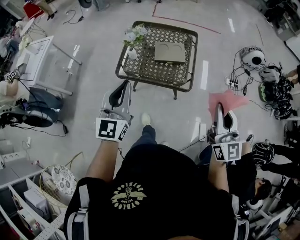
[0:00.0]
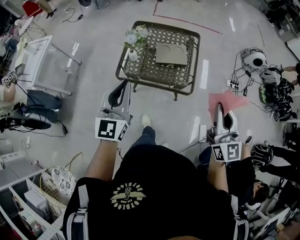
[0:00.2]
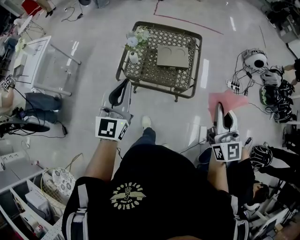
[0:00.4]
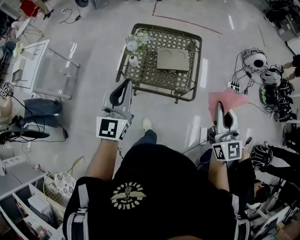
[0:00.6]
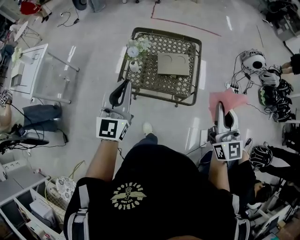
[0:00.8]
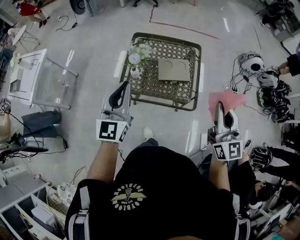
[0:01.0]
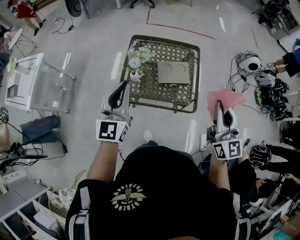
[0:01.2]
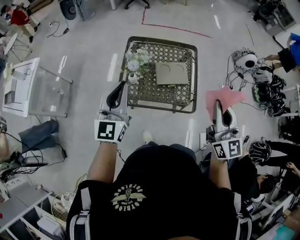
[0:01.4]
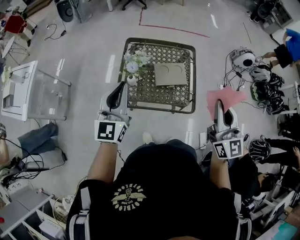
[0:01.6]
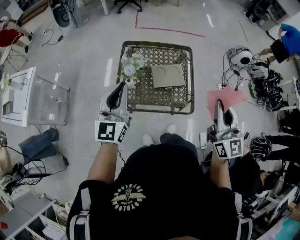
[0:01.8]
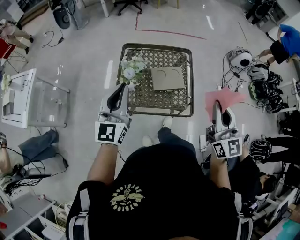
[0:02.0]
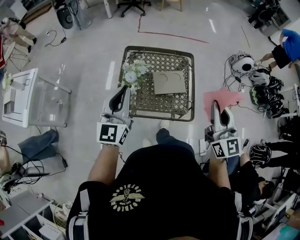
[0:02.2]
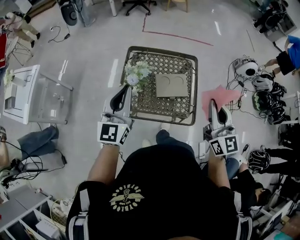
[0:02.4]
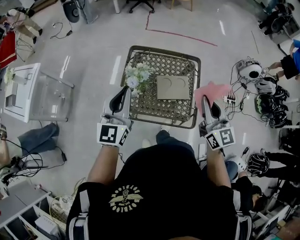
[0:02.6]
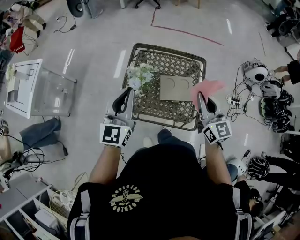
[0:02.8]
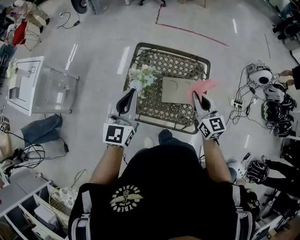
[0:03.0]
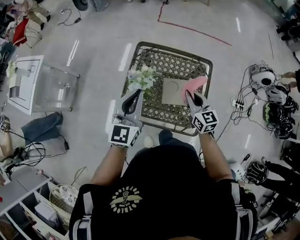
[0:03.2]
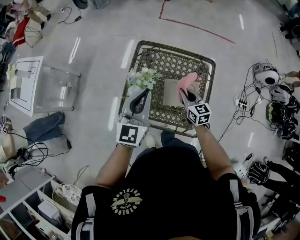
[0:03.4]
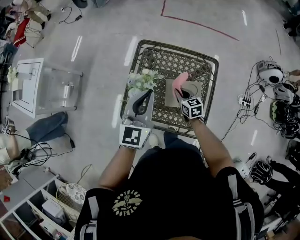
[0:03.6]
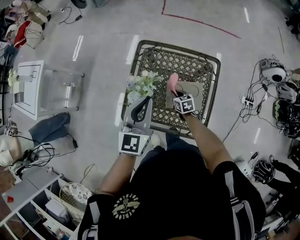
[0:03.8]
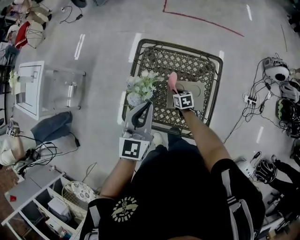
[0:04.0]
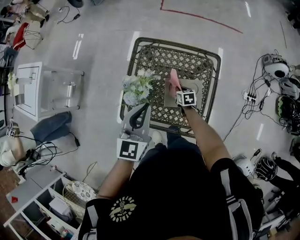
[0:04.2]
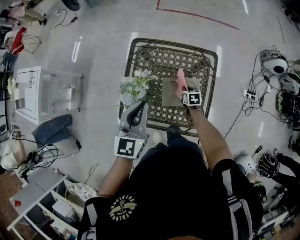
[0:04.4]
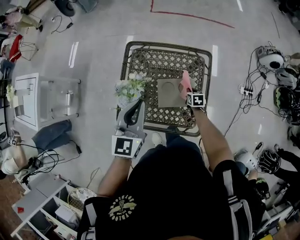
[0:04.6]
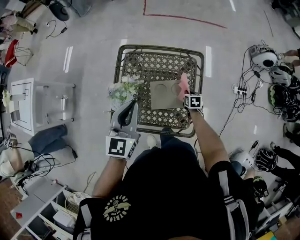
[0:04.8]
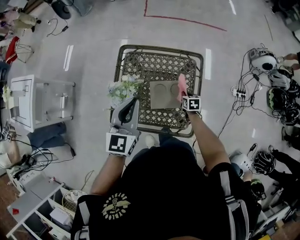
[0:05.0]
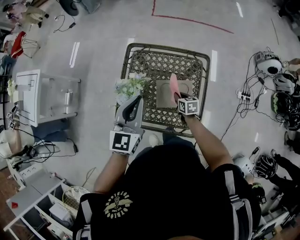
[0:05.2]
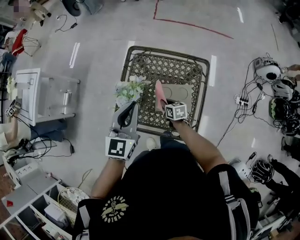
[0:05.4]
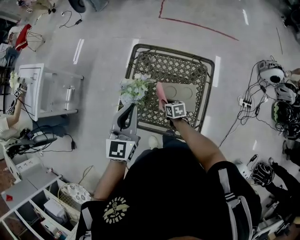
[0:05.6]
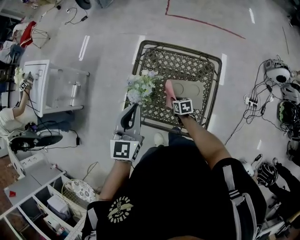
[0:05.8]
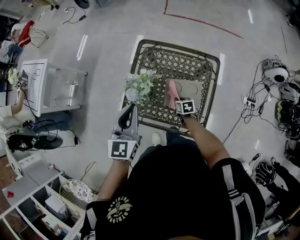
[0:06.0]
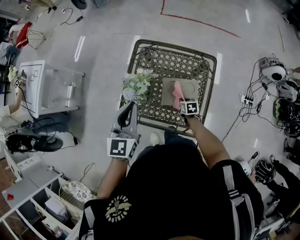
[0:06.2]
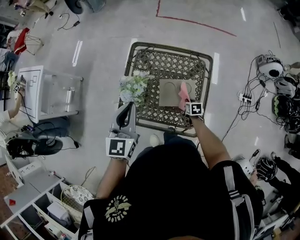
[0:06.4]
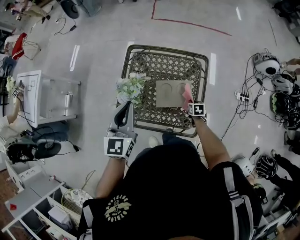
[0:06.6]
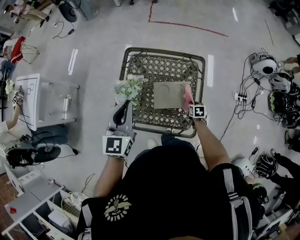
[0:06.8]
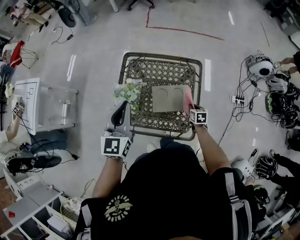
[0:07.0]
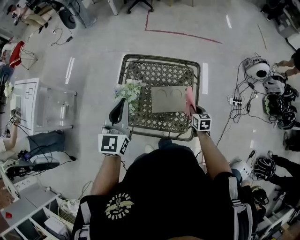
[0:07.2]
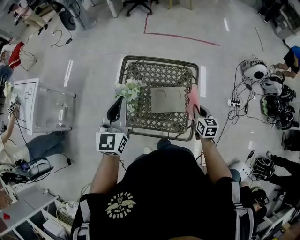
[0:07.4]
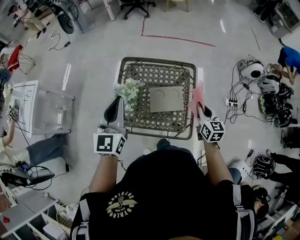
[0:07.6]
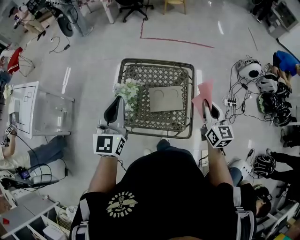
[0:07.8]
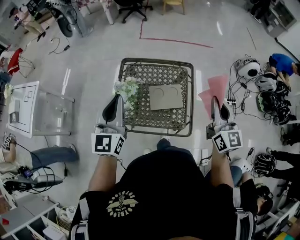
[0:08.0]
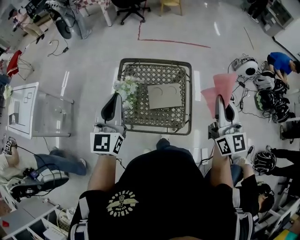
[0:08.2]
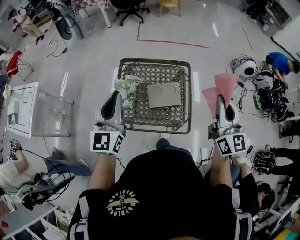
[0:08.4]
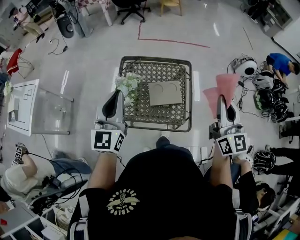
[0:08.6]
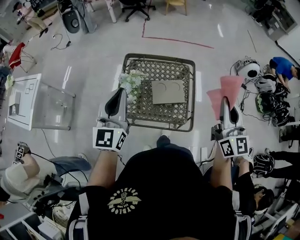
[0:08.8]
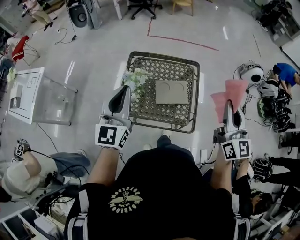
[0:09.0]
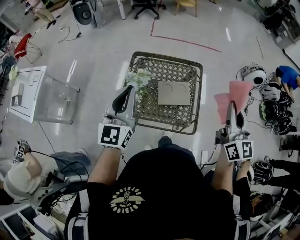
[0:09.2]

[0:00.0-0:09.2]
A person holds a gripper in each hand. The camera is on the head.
0:00.0 to 0:01.6: The grippers both shift forward and to the left by some 25 cm.
0:01.6 to 0:03.0: The left gripper shifts some 15 cm forward and downward; the right gripper is displaced forward and downward by roughly 30 cm, and rotates about 20 degrees.
0:03.0 to 0:04.6: The right gripper goes about 35 cm downward, and points its fingers approximately 50 degrees further downward, while the left gripper travels to the right, downward and forward by some 15 cm.
0:04.6 to 0:06.2: The grippers both shift to the left by approximately 5 cm.
0:06.2 to 0:07.6: The left gripper moves upward, about 10 cm, while the right gripper is displaced upward by approximately 30 cm, and points its fingers roughly 40 degrees further upward.
0:07.6 to 0:09.2: The right gripper moves upward and backward, about 25 cm, and swivels some 30 degrees. The left gripper heads backward, covering about 5 cm.

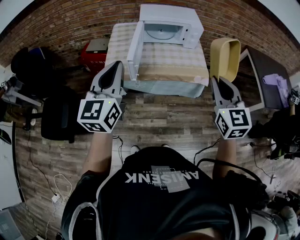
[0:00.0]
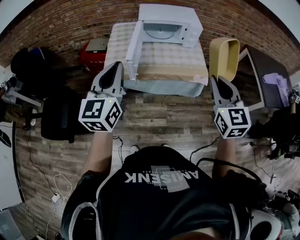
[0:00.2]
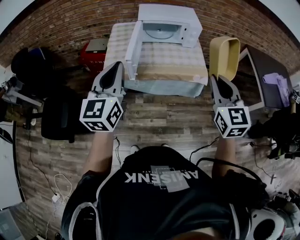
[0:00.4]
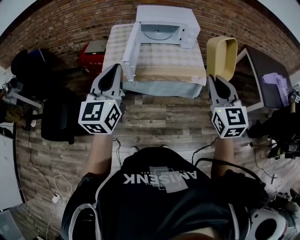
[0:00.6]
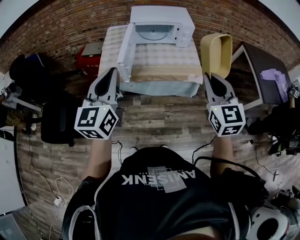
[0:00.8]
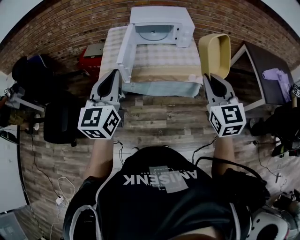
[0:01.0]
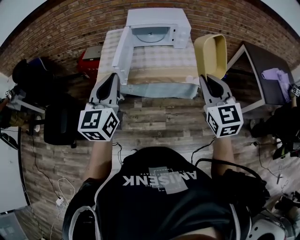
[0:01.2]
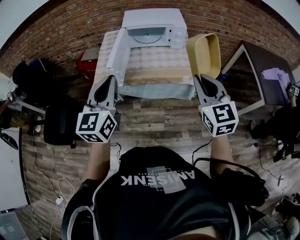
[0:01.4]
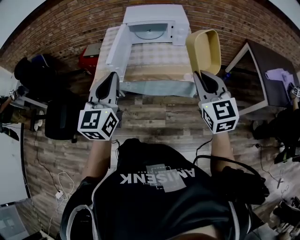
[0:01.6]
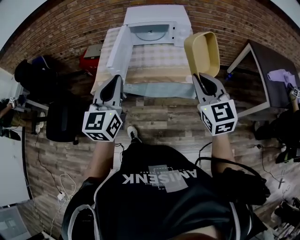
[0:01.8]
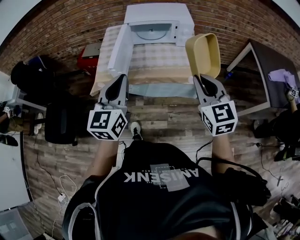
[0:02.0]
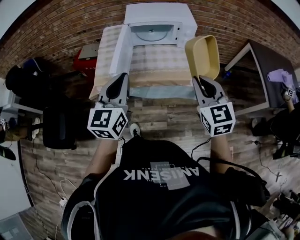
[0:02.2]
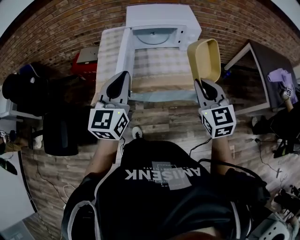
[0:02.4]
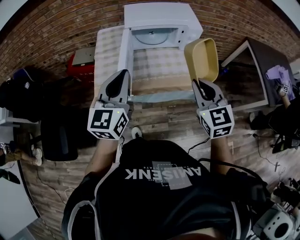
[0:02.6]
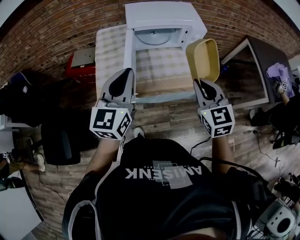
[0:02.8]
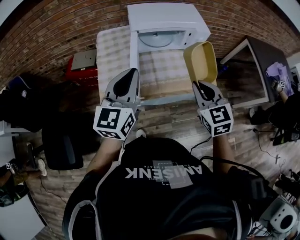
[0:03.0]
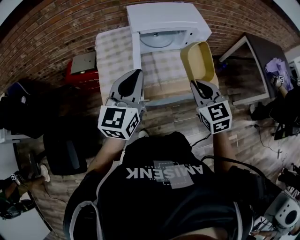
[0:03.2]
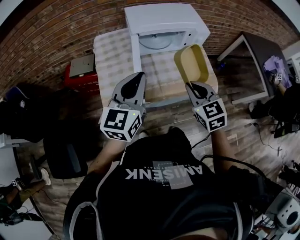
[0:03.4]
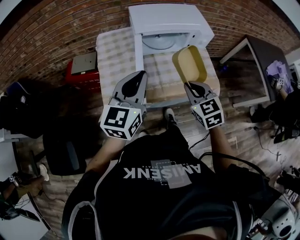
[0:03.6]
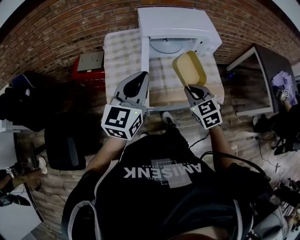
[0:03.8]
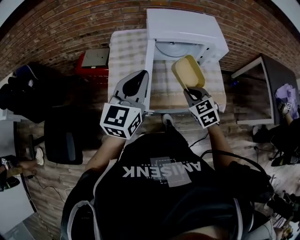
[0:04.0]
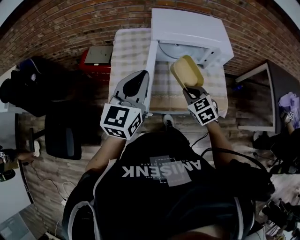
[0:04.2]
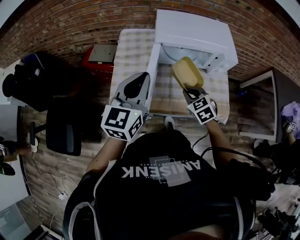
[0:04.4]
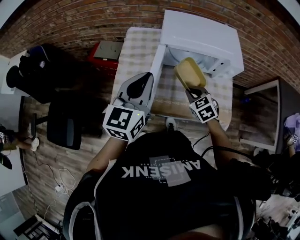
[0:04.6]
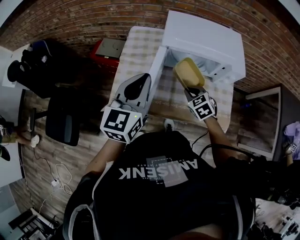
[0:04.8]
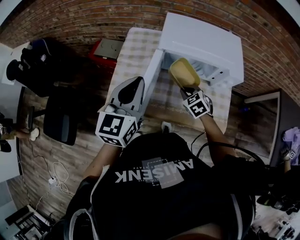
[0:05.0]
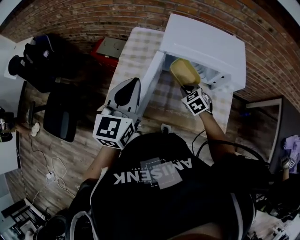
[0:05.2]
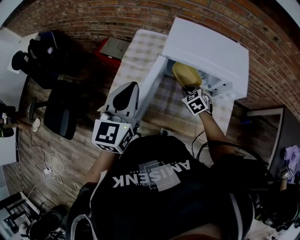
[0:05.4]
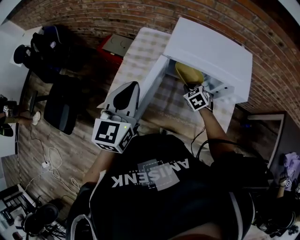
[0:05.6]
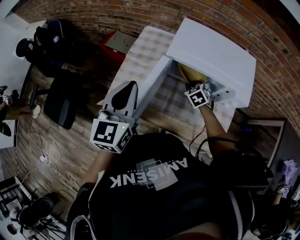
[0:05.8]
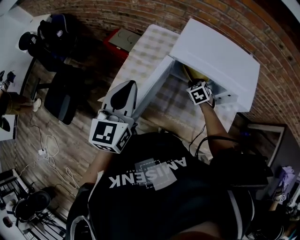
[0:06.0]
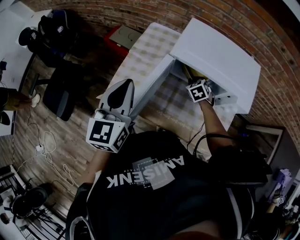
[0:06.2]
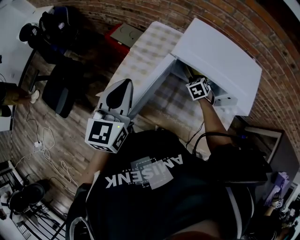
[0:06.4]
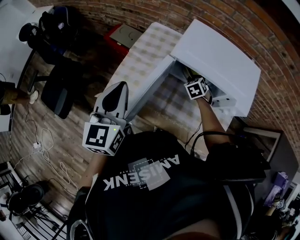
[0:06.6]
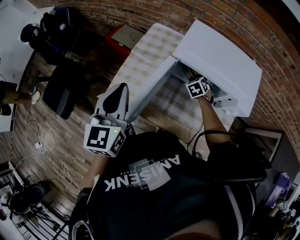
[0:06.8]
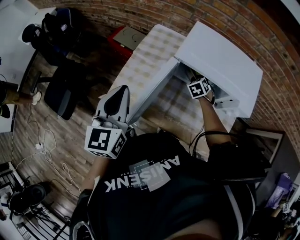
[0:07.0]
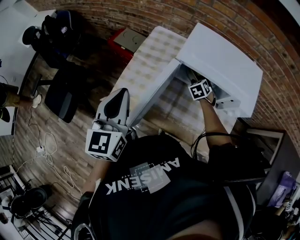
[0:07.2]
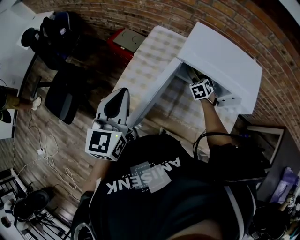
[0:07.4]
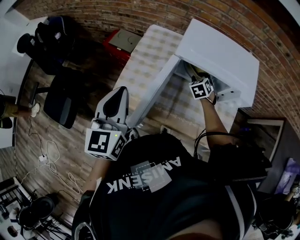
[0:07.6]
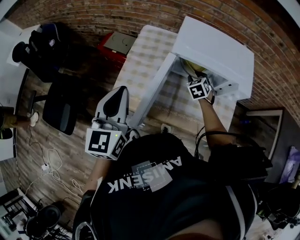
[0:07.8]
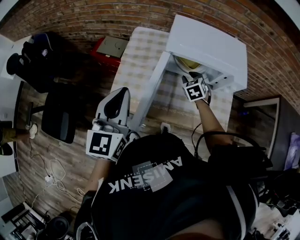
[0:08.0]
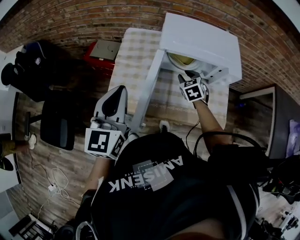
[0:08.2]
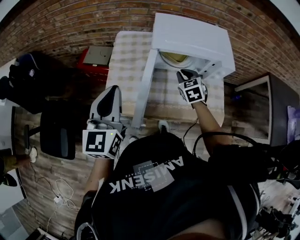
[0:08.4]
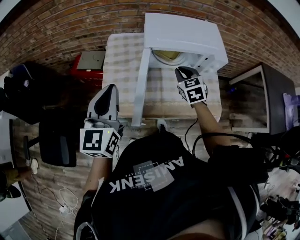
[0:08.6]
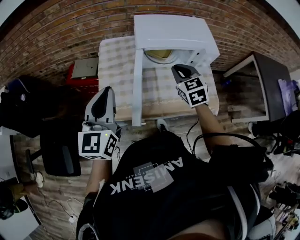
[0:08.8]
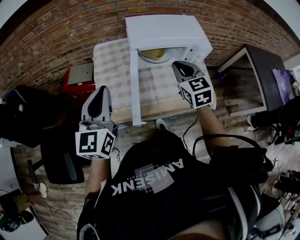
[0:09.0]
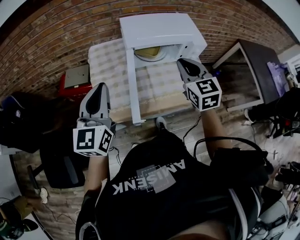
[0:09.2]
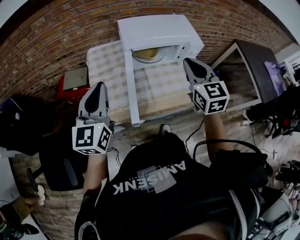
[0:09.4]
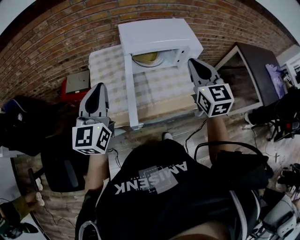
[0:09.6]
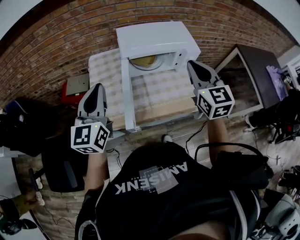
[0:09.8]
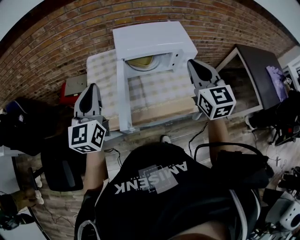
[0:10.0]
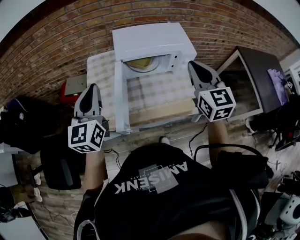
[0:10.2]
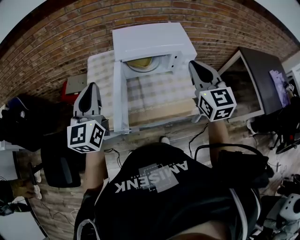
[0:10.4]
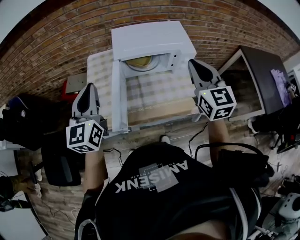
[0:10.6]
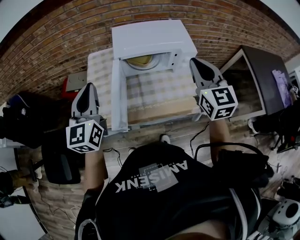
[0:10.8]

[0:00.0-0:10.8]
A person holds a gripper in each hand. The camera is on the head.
0:00.0 to 0:01.6: Both grippers move to the right, approximately 10 cm.
0:01.6 to 0:03.0: The left gripper shifts about 30 cm forward and to the left. The right gripper goes some 30 cm forward, to the left and downward.
0:03.0 to 0:04.6: The right gripper travels forward and downward by roughly 25 cm, and rotates approximately 30 degrees. The left gripper goes about 10 cm forward.
0:04.6 to 0:06.2: The left gripper rotates roughly 30 degrees, while the right gripper is displaced forward and downward by roughly 20 cm.
0:06.2 to 0:07.8: The right gripper opens. Meanwhile the left gripper shifts about 5 cm to the left.
0:07.8 to 0:09.2: The left gripper rotates about 30 degrees, while the right gripper is displaced upward and backward by about 30 cm, tips its fingers upward by roughly 30 degrees, and closes up.
0:09.2 to 0:10.8: The right gripper goes approximately 15 cm to the right and upward. Meanwhile the left gripper shifts about 5 cm to the right.

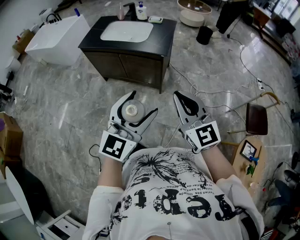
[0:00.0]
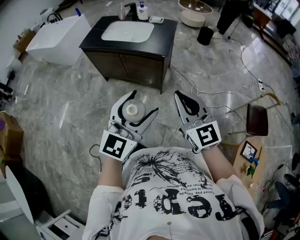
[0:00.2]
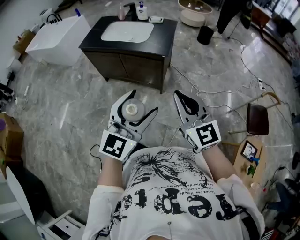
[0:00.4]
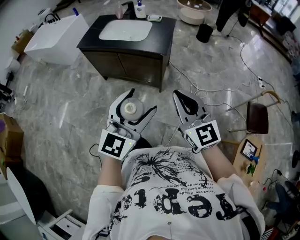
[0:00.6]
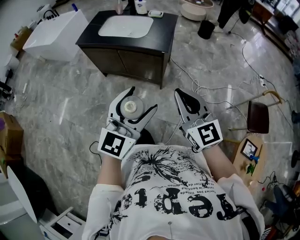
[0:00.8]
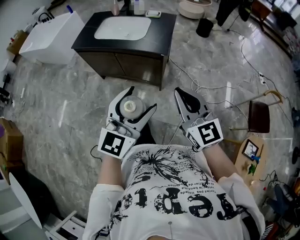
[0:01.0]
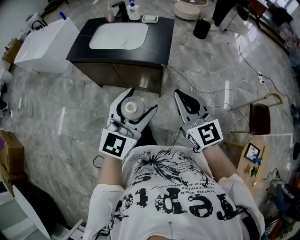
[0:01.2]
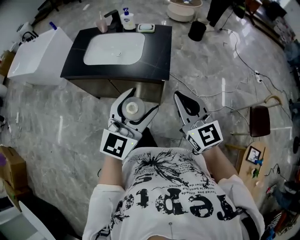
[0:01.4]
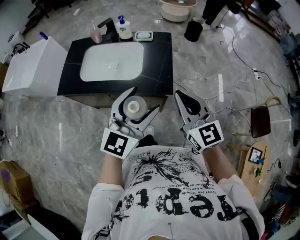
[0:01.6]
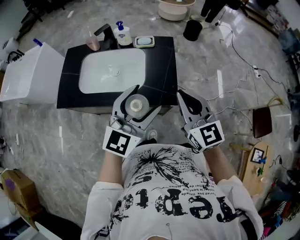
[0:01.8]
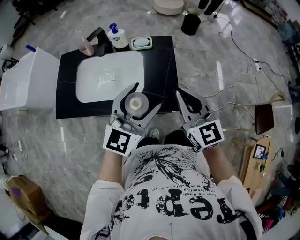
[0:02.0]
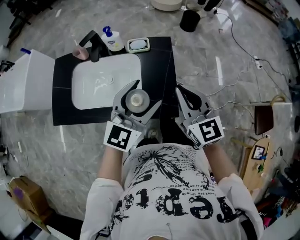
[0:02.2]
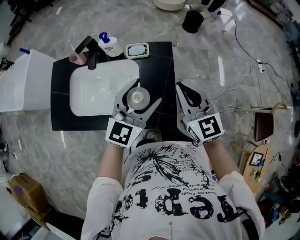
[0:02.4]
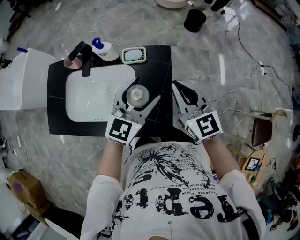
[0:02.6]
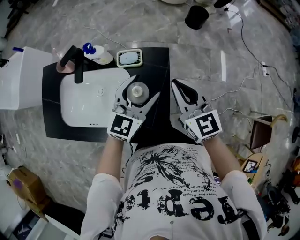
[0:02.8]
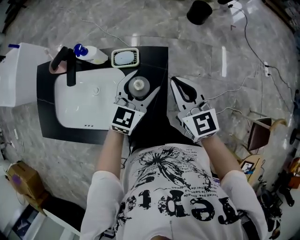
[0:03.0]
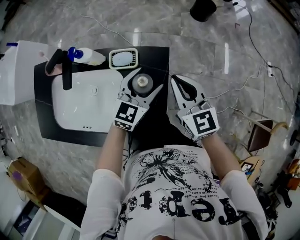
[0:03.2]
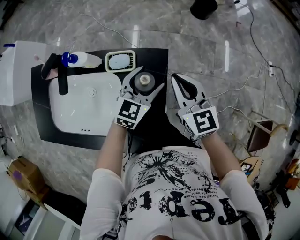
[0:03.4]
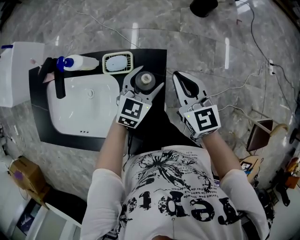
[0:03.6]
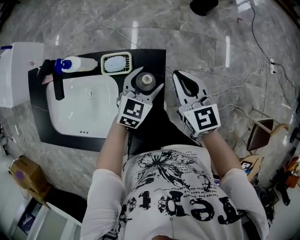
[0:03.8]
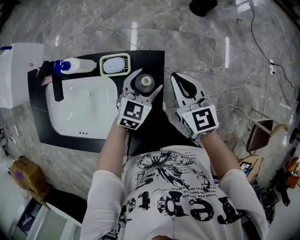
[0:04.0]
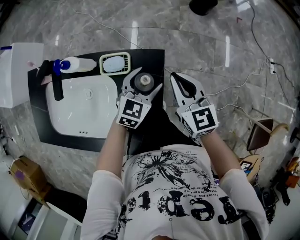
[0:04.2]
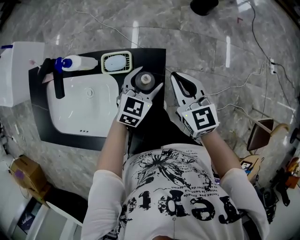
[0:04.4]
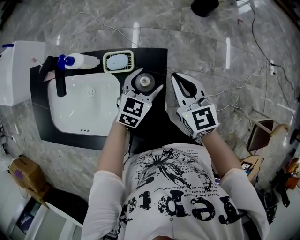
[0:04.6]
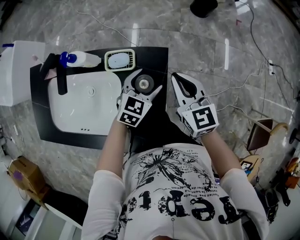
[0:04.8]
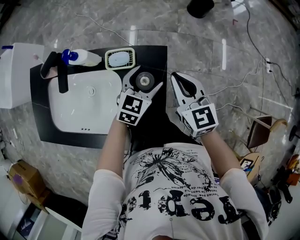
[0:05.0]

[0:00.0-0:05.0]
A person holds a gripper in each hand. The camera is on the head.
0:00.0 to 0:01.6: The two grippers travel together, forward, some 40 cm.
0:01.6 to 0:03.4: The pair of grippers is taken forward, approximately 60 cm. The left gripper shifts some 30 cm downward, and turns by some 30 degrees.
0:03.4 to 0:05.0: The grippers stay close to where they were, moving slightly.
